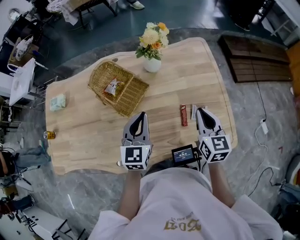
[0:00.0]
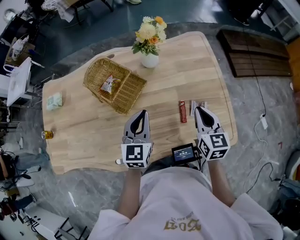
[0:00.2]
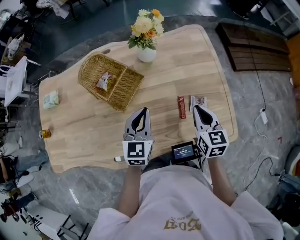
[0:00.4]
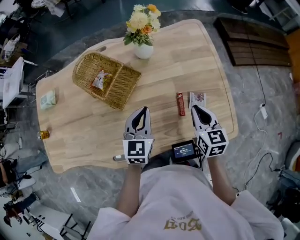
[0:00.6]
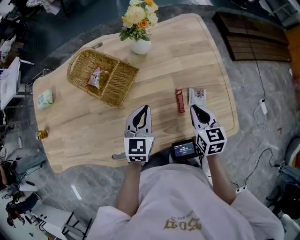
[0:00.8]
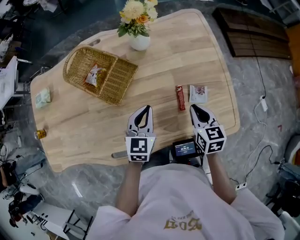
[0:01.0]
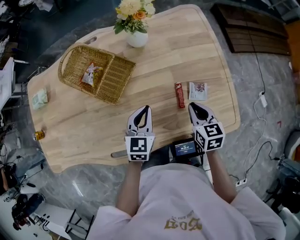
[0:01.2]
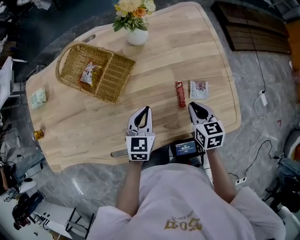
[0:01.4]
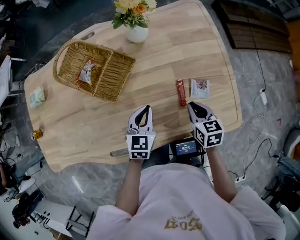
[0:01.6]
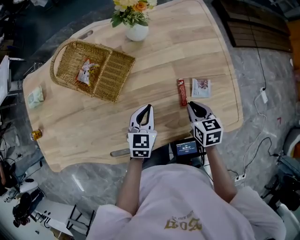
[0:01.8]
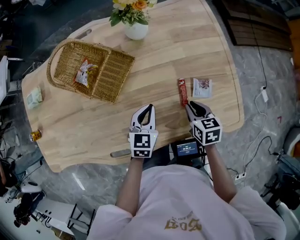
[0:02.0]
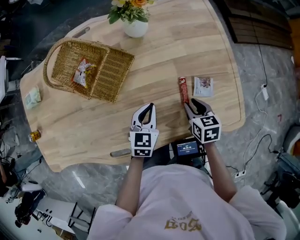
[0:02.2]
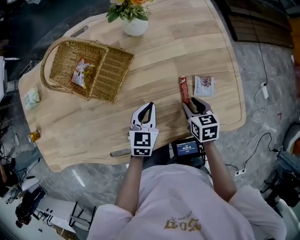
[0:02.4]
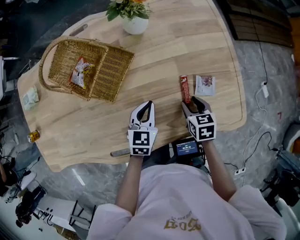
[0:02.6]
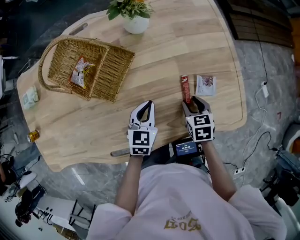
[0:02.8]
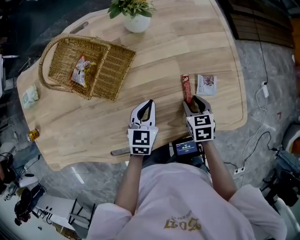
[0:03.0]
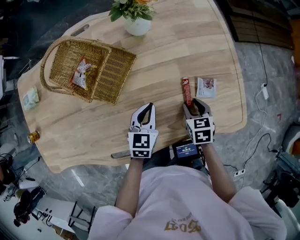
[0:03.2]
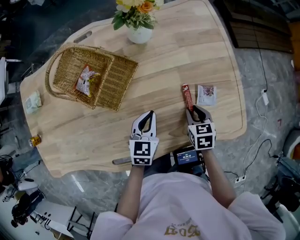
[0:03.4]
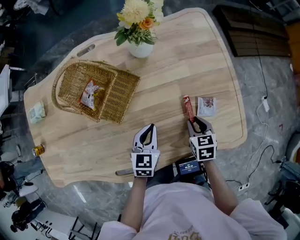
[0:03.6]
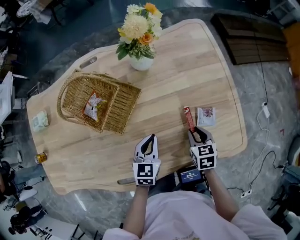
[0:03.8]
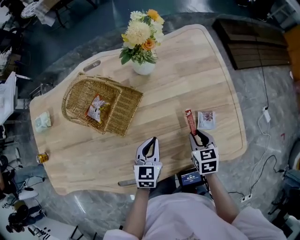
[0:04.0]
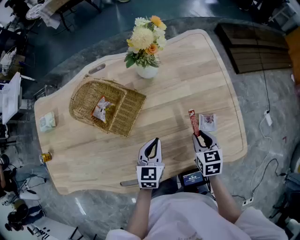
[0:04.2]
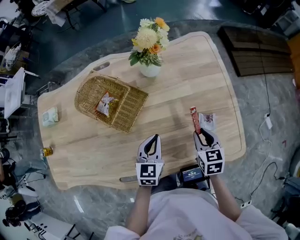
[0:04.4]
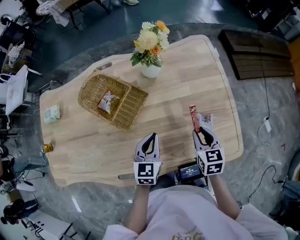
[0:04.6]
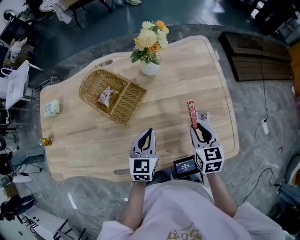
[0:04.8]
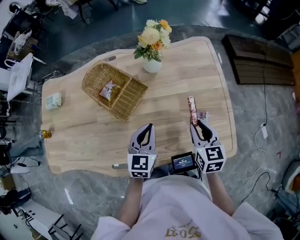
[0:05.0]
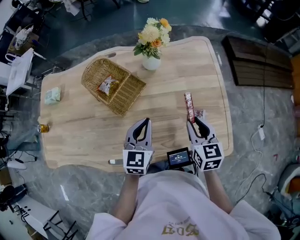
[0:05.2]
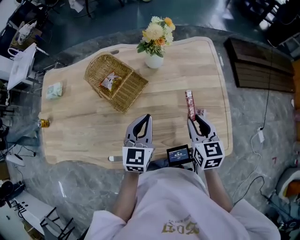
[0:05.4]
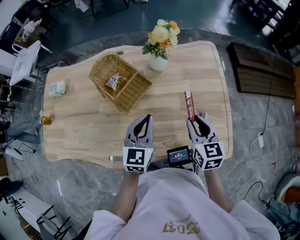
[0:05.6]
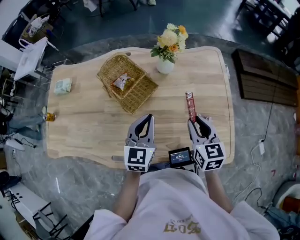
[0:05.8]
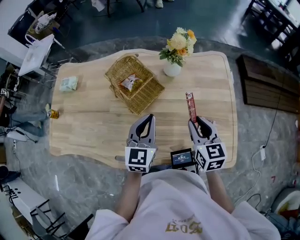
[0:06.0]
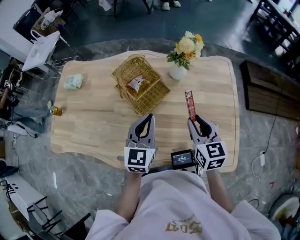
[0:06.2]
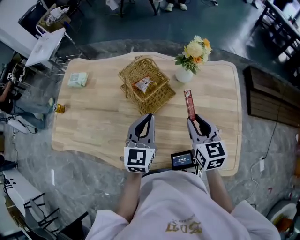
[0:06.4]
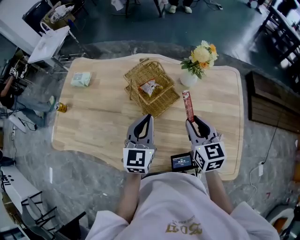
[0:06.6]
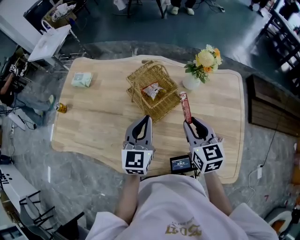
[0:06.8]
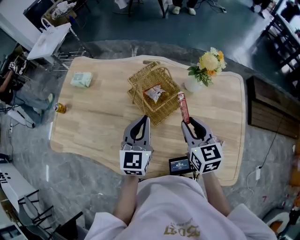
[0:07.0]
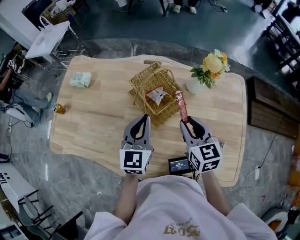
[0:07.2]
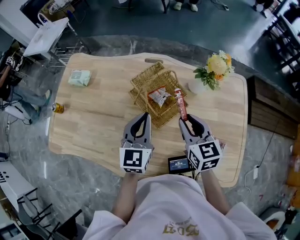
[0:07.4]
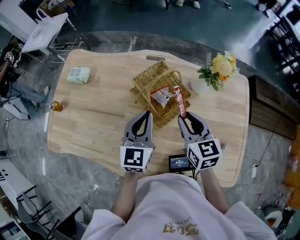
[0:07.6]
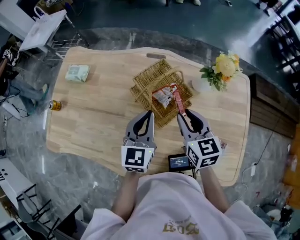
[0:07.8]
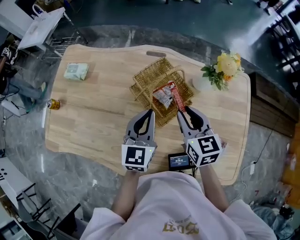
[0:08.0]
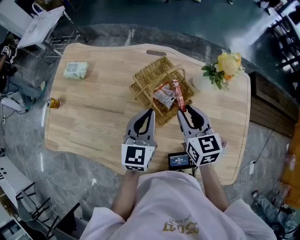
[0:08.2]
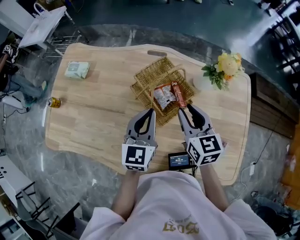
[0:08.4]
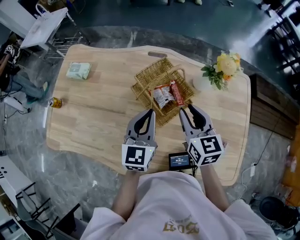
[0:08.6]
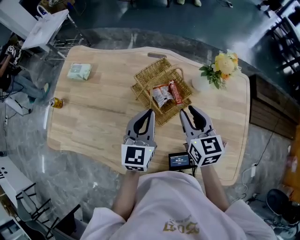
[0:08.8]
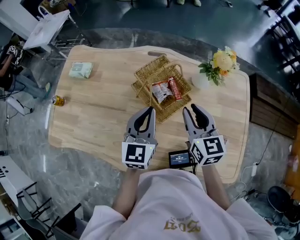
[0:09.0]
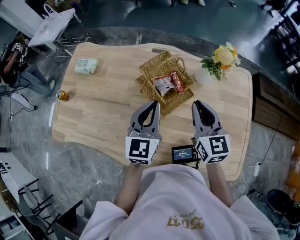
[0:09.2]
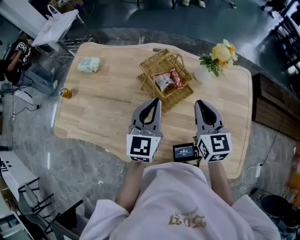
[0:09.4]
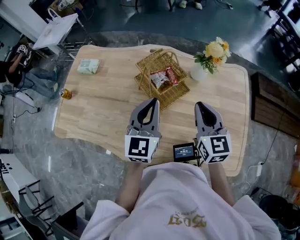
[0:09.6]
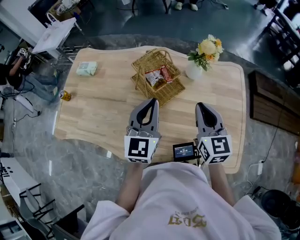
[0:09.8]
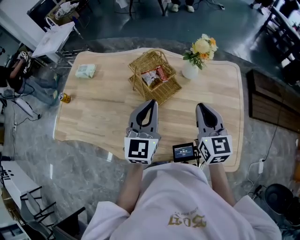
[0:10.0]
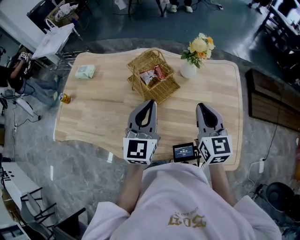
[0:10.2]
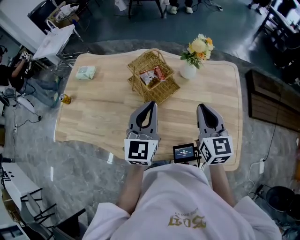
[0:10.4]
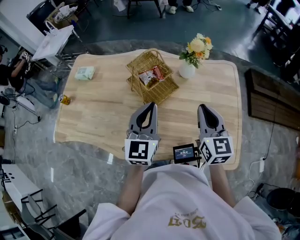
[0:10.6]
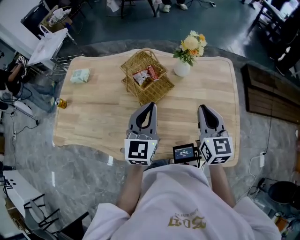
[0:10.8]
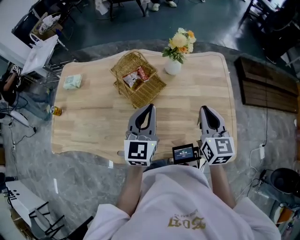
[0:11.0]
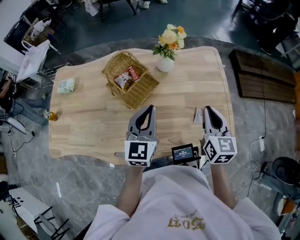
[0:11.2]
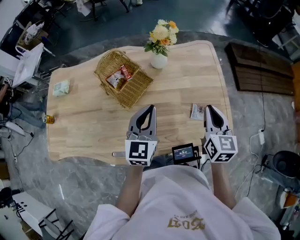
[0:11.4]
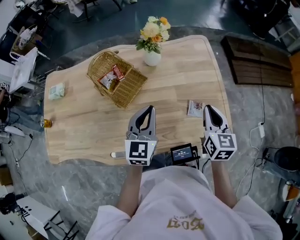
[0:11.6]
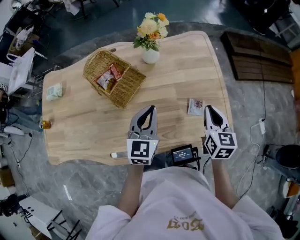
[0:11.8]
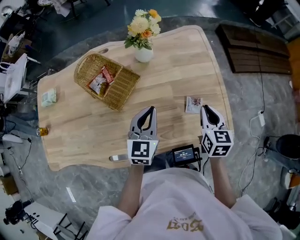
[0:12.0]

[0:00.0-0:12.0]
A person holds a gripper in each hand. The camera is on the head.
0:00.0 to 0:01.6: Both grippers move downward, about 15 cm. The left gripper rotates approximately 20 degrees; the right gripper turns by roughly 30 degrees.
0:01.6 to 0:03.0: The right gripper travels downward by some 5 cm, and opens its fingers.
0:03.0 to 0:04.4: The left gripper heads upward, covering approximately 5 cm. Meanwhile the right gripper goes about 10 cm upward.
0:04.4 to 0:06.0: The left gripper heads upward, covering roughly 15 cm; the right gripper moves upward and to the left, approximately 15 cm, and rotates some 20 degrees.
0:06.0 to 0:07.6: Both grippers travel together to the left and forward, some 20 cm.
0:07.6 to 0:09.0: The grippers move only a little.
0:09.0 to 0:10.4: The left gripper moves backward, upward and to the right, some 15 cm. Meanwhile the right gripper heads backward, to the right and upward, covering approximately 15 cm, and closes its fingers.
0:10.4 to 0:12.0: Both grippers travel together to the right and downward, some 20 cm. The left gripper changes its angle by roughly 30 degrees, while the right gripper turns by roughly 30 degrees.

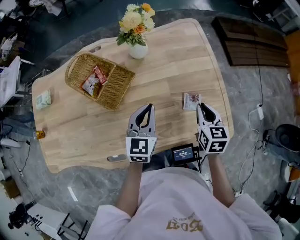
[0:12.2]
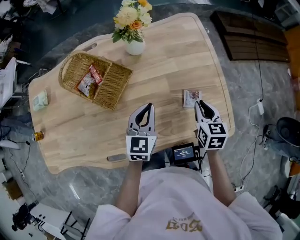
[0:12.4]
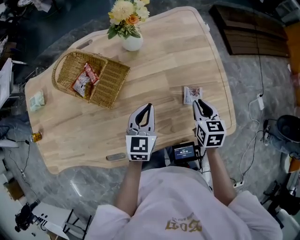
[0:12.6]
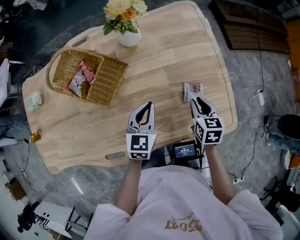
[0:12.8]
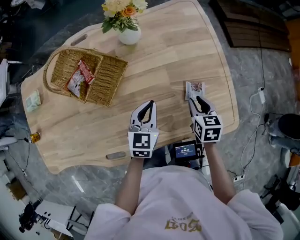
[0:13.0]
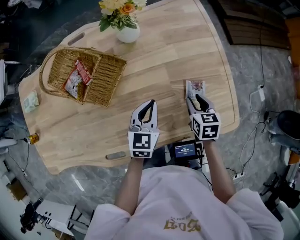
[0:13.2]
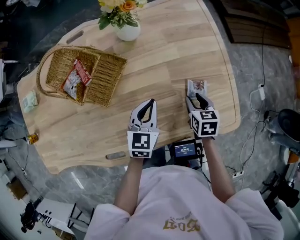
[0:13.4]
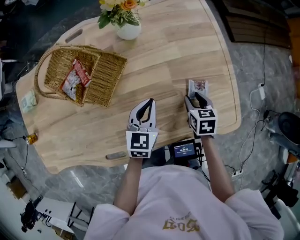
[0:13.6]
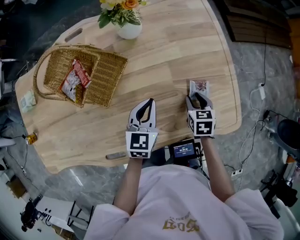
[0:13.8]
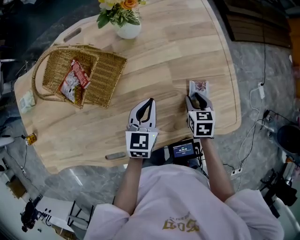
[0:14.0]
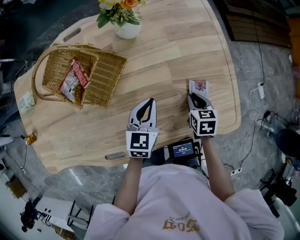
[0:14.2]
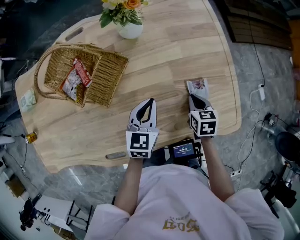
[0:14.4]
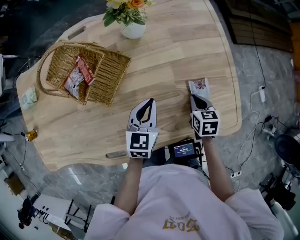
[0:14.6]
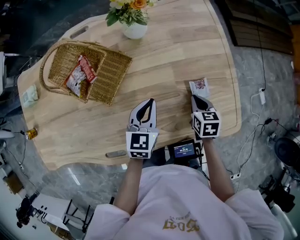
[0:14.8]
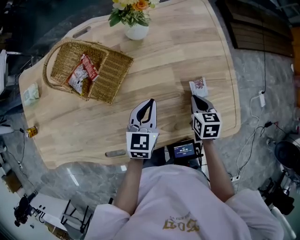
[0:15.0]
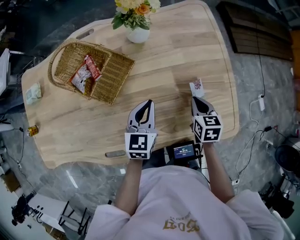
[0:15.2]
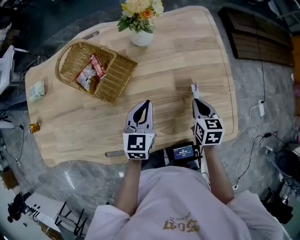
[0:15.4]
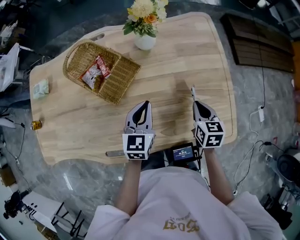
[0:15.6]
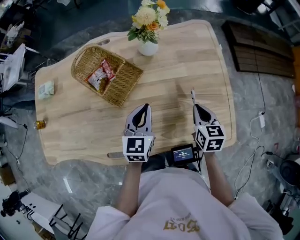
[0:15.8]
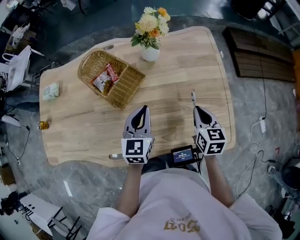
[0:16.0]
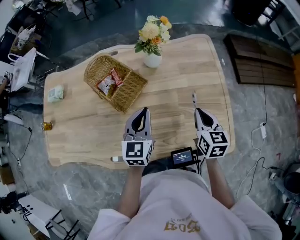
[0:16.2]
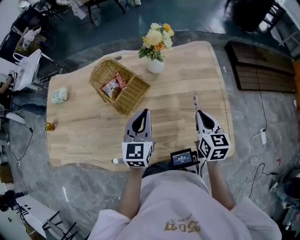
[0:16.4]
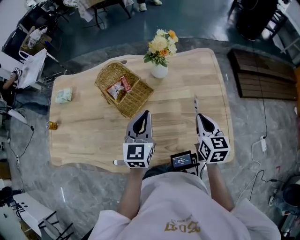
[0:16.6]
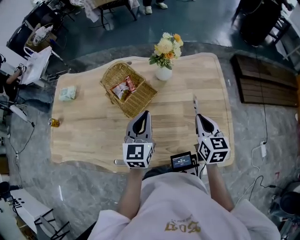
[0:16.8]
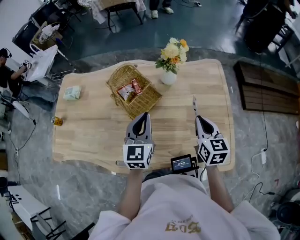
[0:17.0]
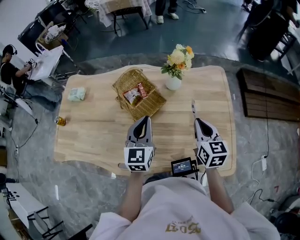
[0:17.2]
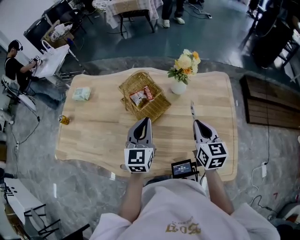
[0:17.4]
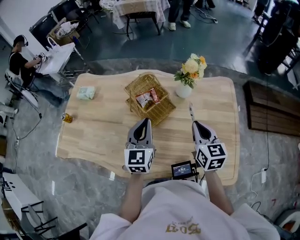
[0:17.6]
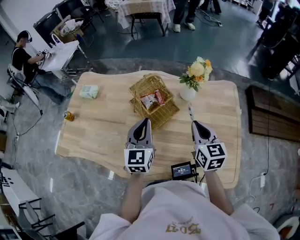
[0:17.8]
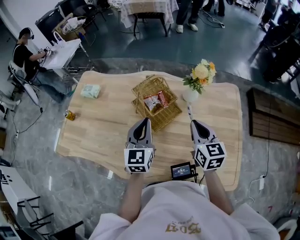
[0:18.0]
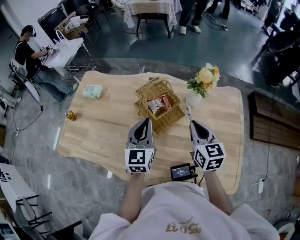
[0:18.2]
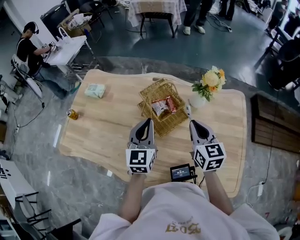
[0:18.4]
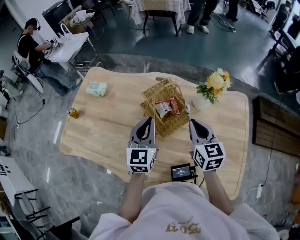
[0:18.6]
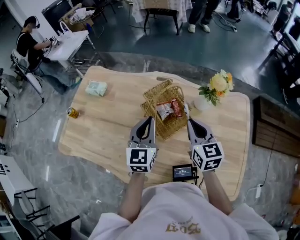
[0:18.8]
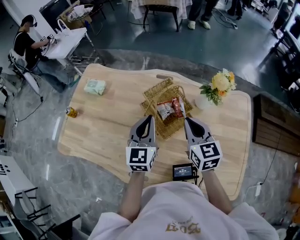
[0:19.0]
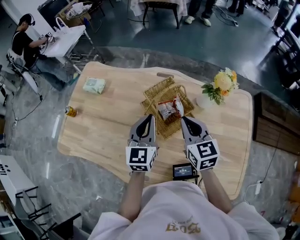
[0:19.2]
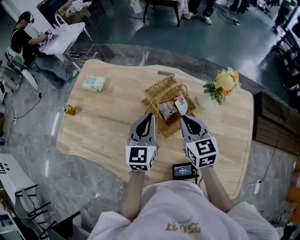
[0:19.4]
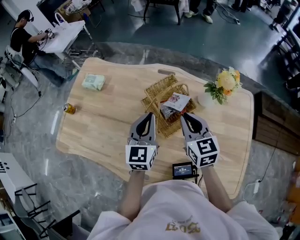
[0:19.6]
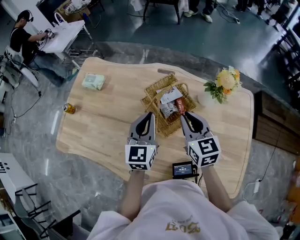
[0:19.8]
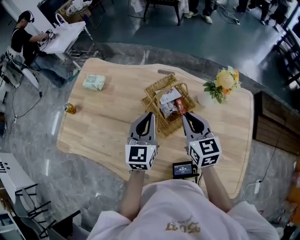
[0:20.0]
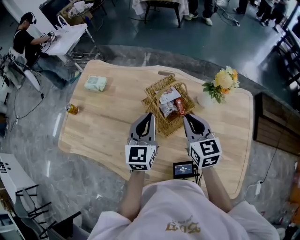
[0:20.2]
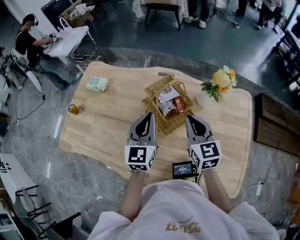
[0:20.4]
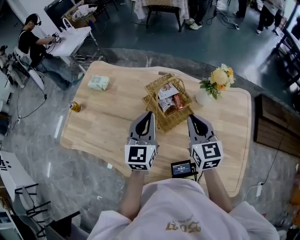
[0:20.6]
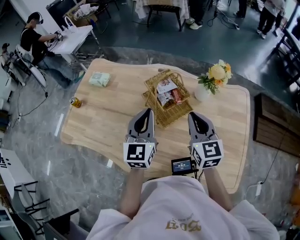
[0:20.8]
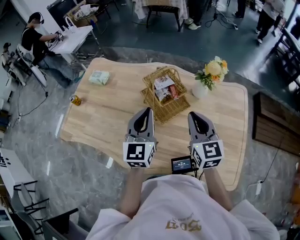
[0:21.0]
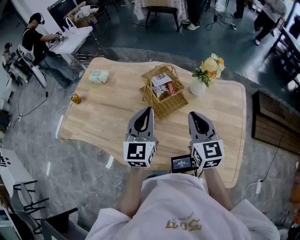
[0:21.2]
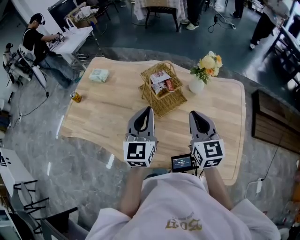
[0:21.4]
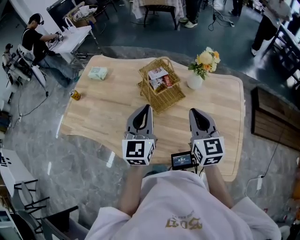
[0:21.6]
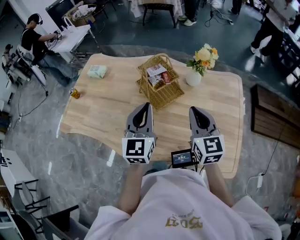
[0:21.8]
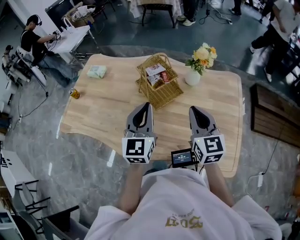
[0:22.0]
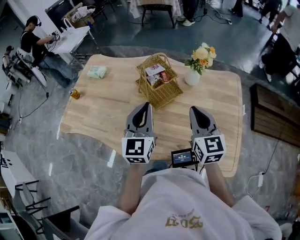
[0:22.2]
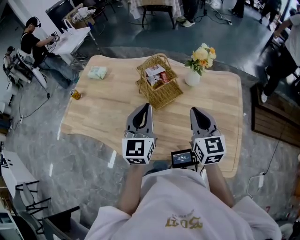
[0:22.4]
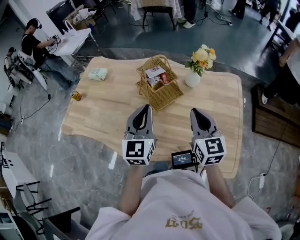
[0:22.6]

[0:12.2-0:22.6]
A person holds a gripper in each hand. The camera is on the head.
0:12.2 to 0:13.6: Both grippers move downward, roughly 10 cm. The right gripper opens.
0:13.6 to 0:15.2: The right gripper closes up.
0:15.2 to 0:16.6: Both grippers travel together upward, roughly 15 cm. The left gripper turns by about 20 degrees; the right gripper rotates approximately 20 degrees.
0:16.6 to 0:18.2: The right gripper goes roughly 20 cm to the left and forward, and turns by some 20 degrees. Meanwhile the left gripper goes approximately 15 cm to the left.
0:18.2 to 0:19.6: The left gripper moves forward, approximately 5 cm; the right gripper is displaced to the left and forward by approximately 15 cm.
0:19.6 to 0:21.2: The right gripper heads backward, upward and to the right, covering approximately 15 cm. Meanwhile the left gripper is displaced backward and upward by about 15 cm.
0:21.2 to 0:22.6: Both grippers travel together backward, some 5 cm.

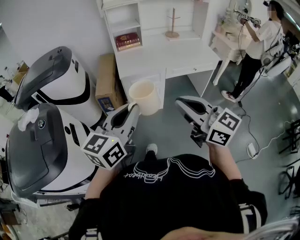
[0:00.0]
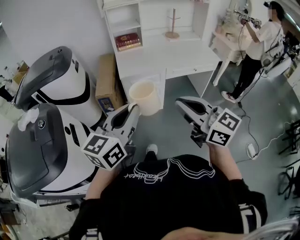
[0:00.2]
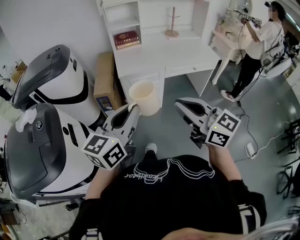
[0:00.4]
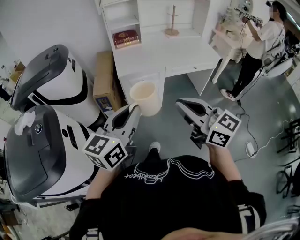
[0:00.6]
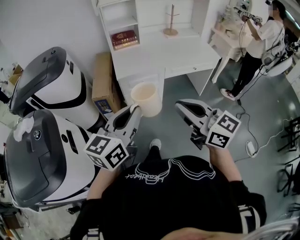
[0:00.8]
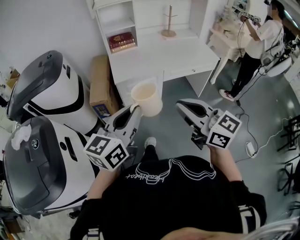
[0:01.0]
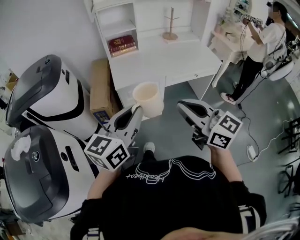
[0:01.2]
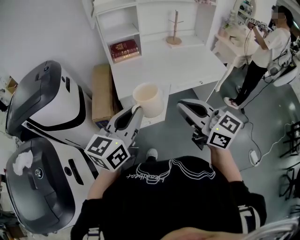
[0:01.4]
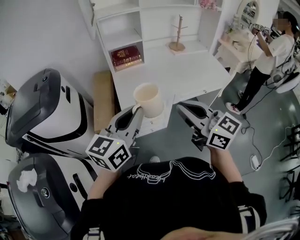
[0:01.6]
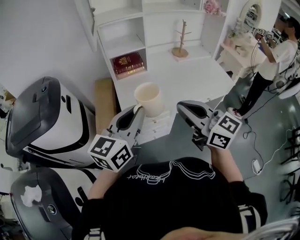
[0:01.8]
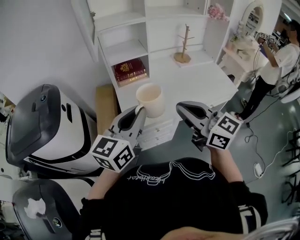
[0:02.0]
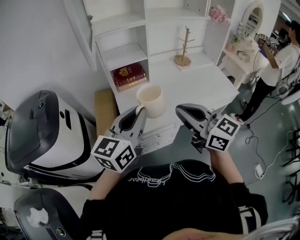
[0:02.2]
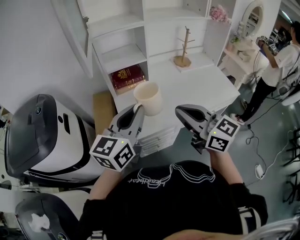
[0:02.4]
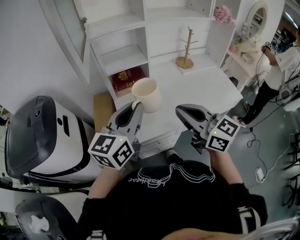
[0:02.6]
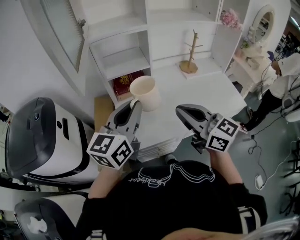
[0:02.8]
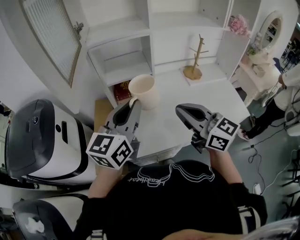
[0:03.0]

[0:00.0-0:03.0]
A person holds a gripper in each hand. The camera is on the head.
0:00.0 to 0:01.6: The two grippers go approximately 30 cm forward.
0:01.6 to 0:03.0: Both grippers move forward, roughly 35 cm.
